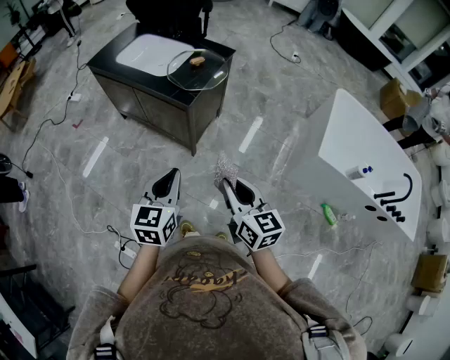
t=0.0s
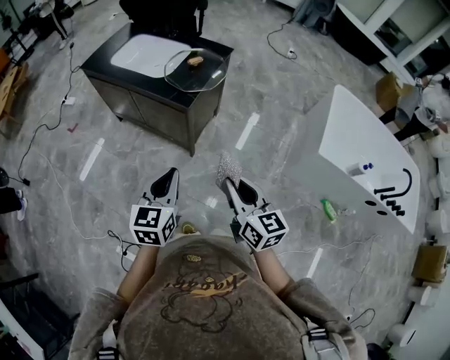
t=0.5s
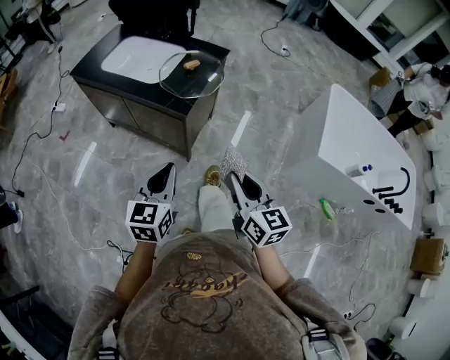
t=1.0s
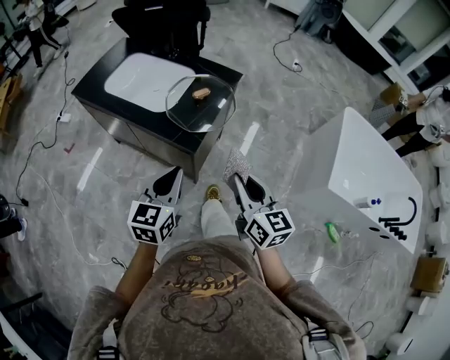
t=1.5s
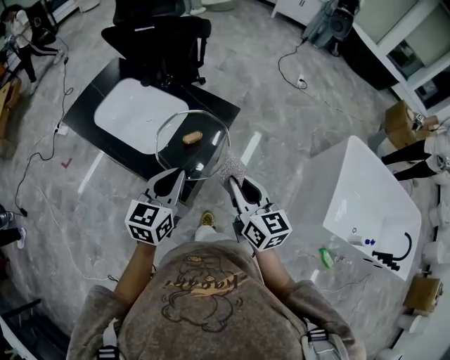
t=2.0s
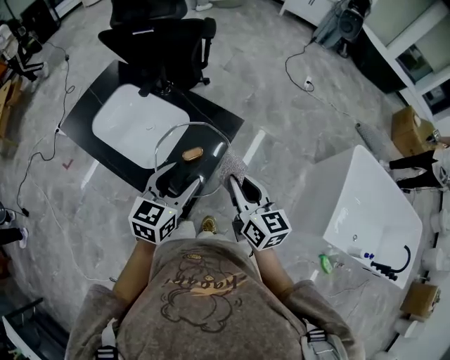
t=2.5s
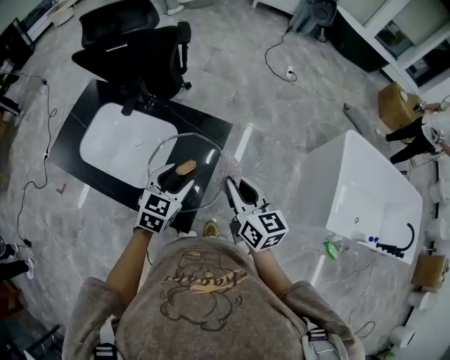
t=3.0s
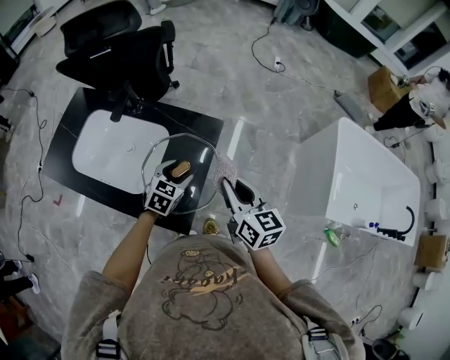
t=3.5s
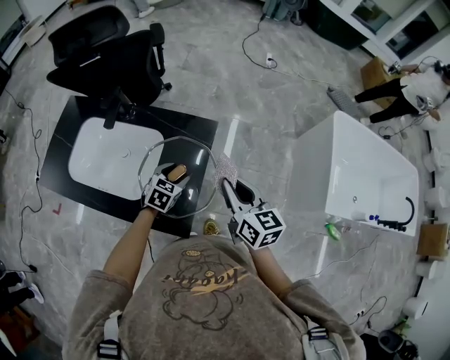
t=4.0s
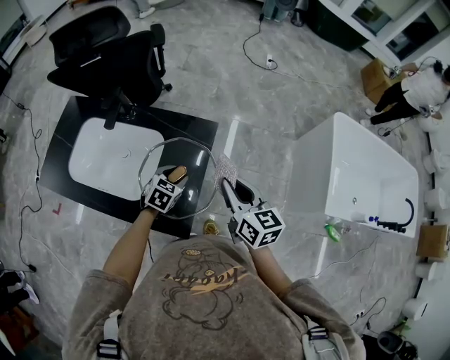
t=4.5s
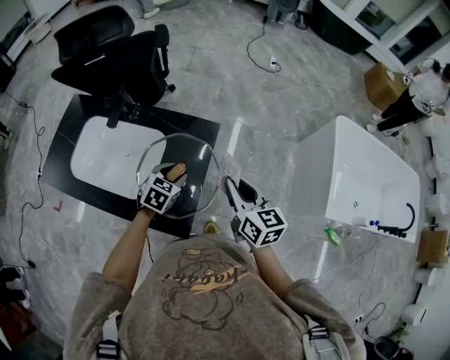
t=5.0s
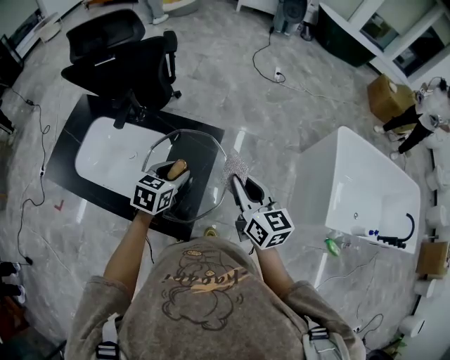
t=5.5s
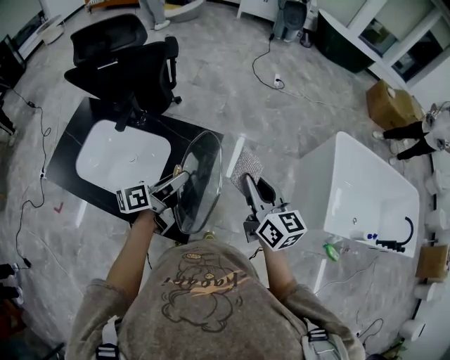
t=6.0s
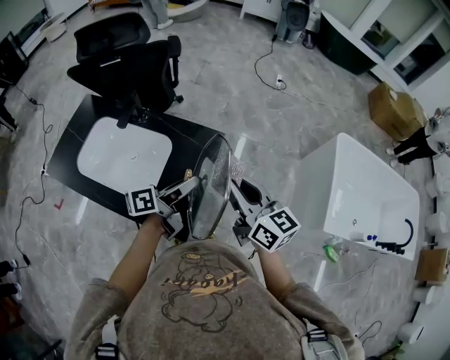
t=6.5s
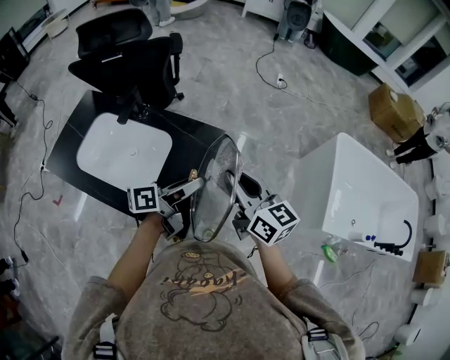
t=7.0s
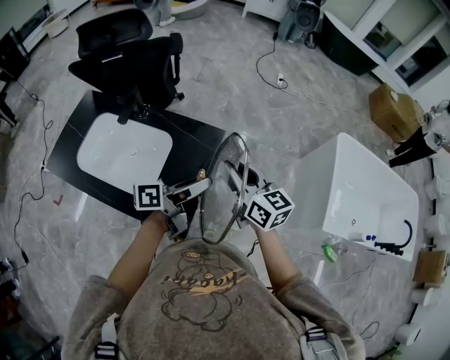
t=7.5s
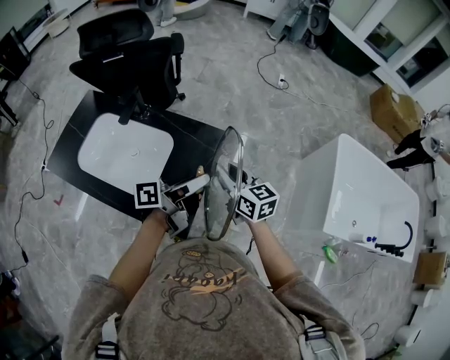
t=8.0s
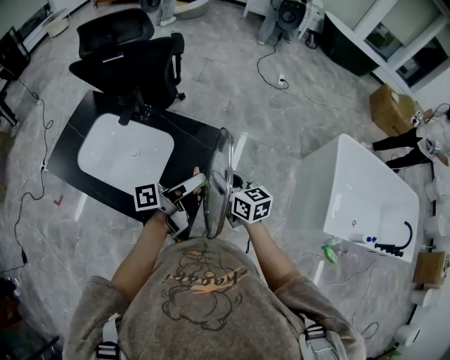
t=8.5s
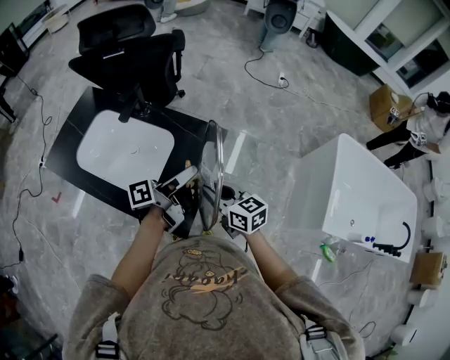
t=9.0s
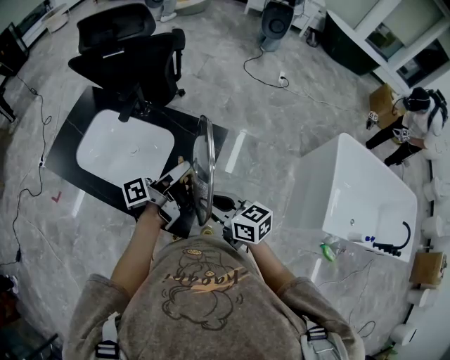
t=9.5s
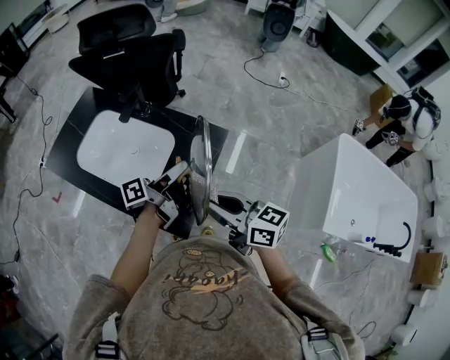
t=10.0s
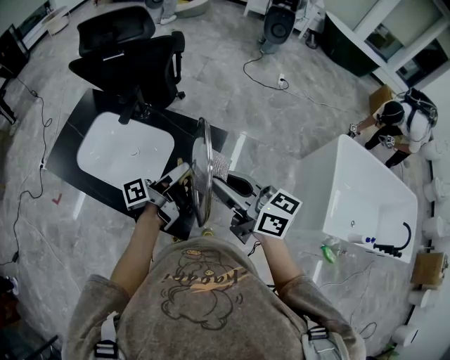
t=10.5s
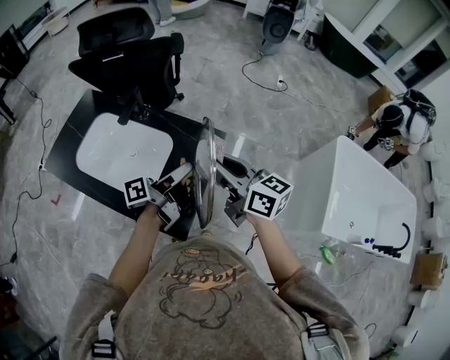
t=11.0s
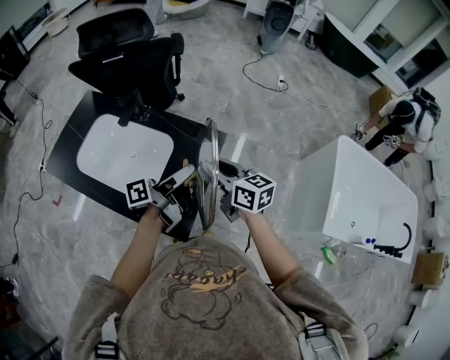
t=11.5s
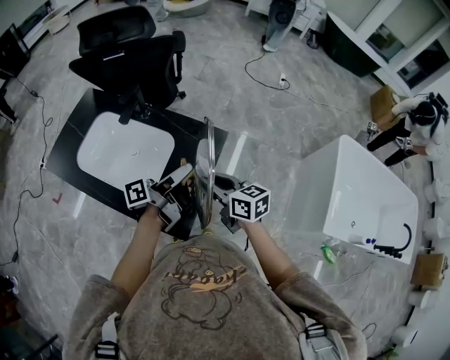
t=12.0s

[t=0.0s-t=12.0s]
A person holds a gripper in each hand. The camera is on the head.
t=0.0s to t=2.0s: The pair of grippers is taken forward, approximately 40 cm.
t=2.0s to t=4.0s: The left gripper moves downward and forward, some 25 cm, angles its fingers downward, by approximately 30 degrees, and opens up; the right gripper goes roughly 10 cm forward.
t=4.0s to t=6.0s: The left gripper heads upward, covering approximately 15 cm, and angles its fingers upward, by approximately 40 degrees. Meanwhile the right gripper heads upward, covering about 5 cm.
t=6.0s to t=8.0s: The right gripper is displaced to the left and downward by approximately 10 cm. Meanwhile the left gripper moves to the right, about 5 cm, and changes its angle by approximately 20 degrees.
t=8.0s to t=10.0s: The left gripper heads to the left, covering about 5 cm, while the right gripper goes some 15 cm backward, upward and to the left, and swivels roughly 30 degrees.
t=10.0s to t=12.0s: The right gripper shifts approximately 10 cm downward and forward.

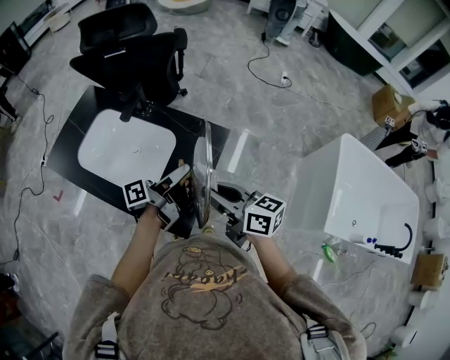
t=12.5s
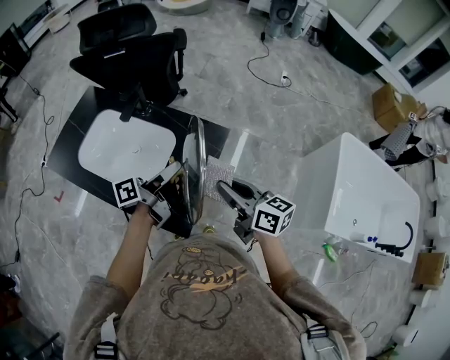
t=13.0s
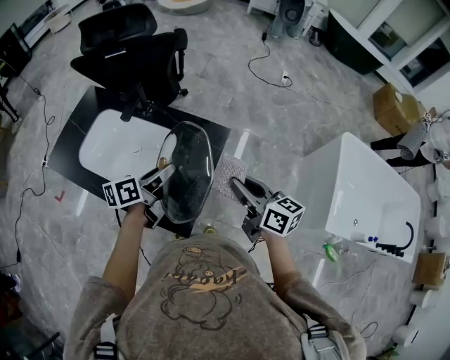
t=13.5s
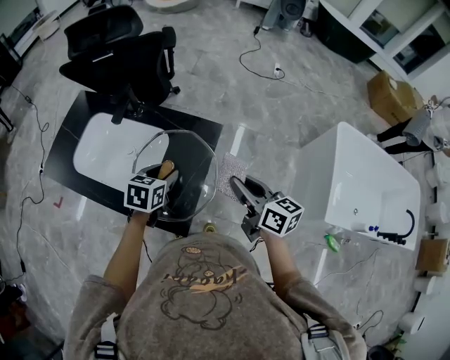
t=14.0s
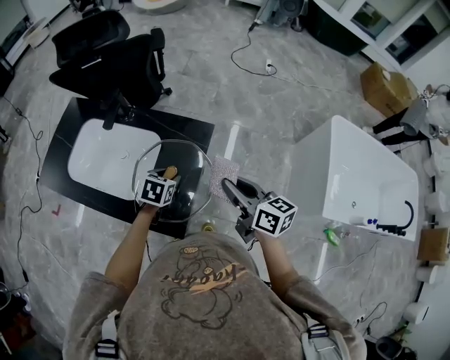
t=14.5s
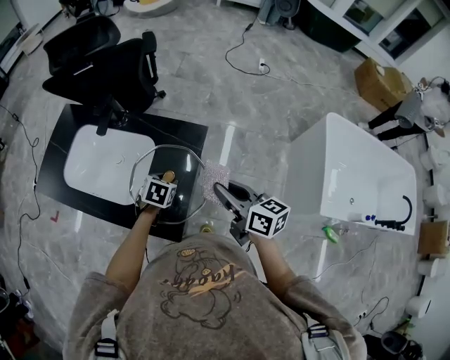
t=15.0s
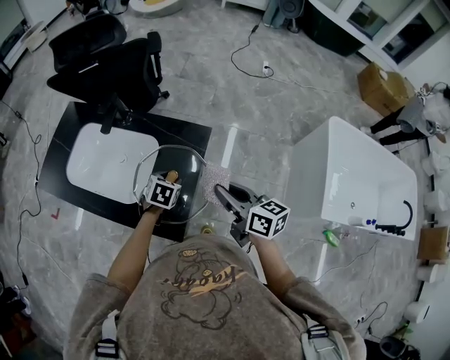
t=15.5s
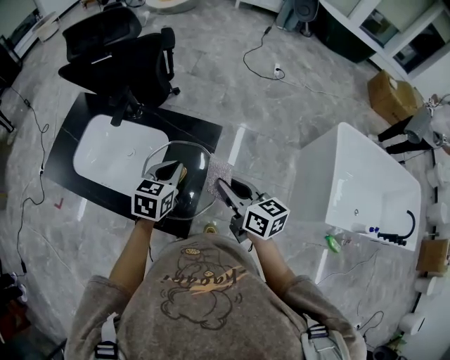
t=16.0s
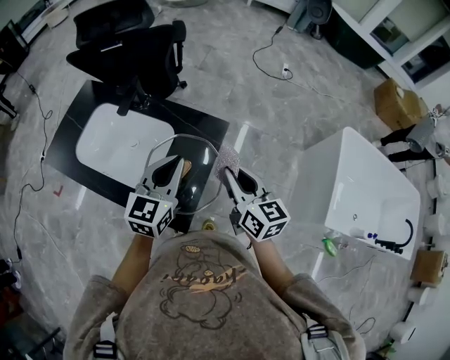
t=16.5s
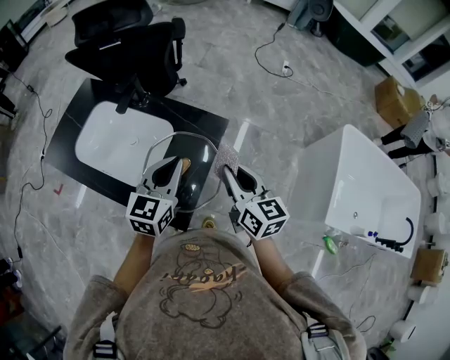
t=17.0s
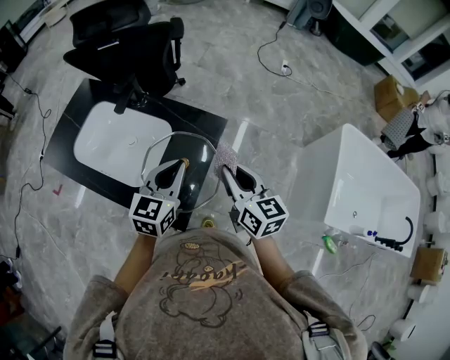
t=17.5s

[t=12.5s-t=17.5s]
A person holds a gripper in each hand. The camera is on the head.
t=12.5s to t=15.0s: The left gripper goes some 15 cm downward, and tips its fingers downward by approximately 70 degrees. Meanwhile the right gripper moves to the right, some 10 cm.
t=15.0s to t=17.5s: The left gripper travels upward by about 20 cm, points its fingers approximately 40 degrees further upward, and closes up.

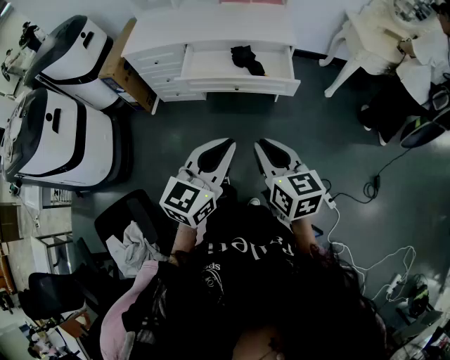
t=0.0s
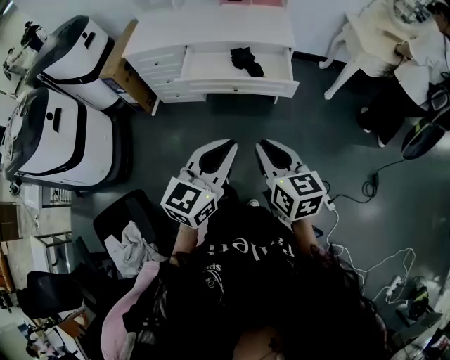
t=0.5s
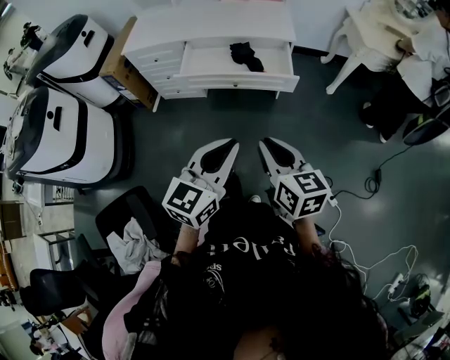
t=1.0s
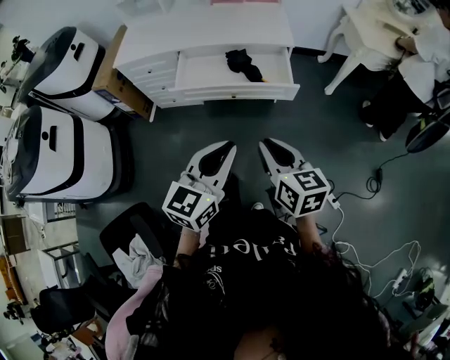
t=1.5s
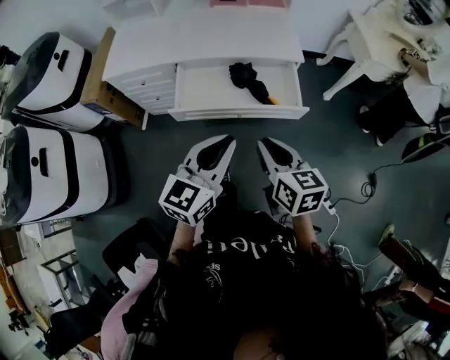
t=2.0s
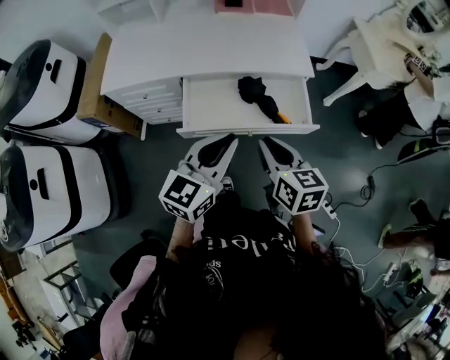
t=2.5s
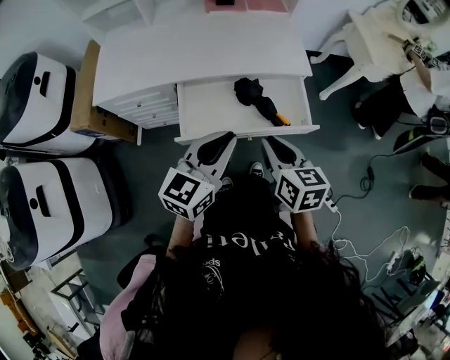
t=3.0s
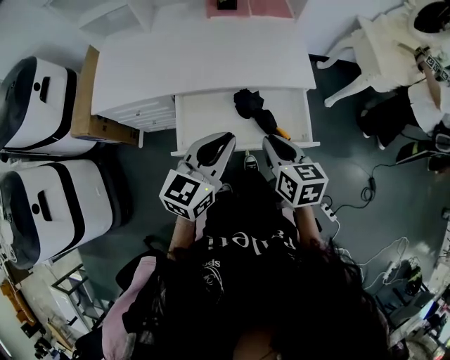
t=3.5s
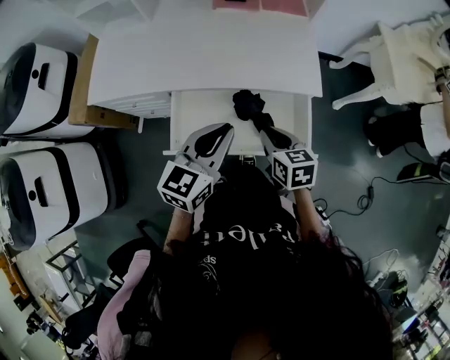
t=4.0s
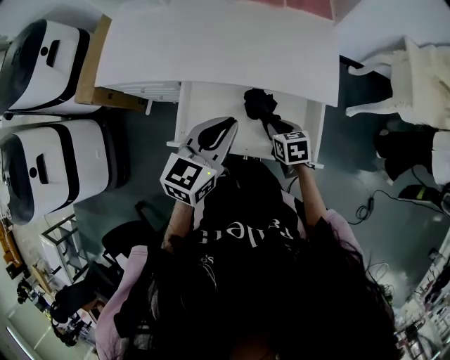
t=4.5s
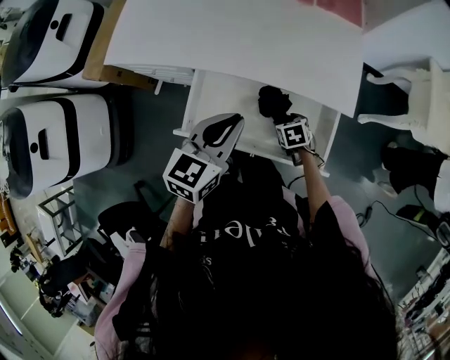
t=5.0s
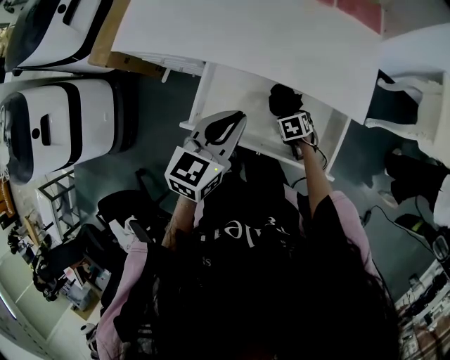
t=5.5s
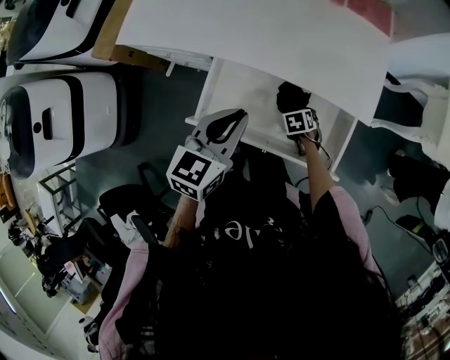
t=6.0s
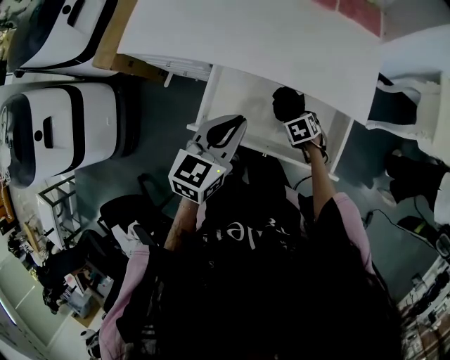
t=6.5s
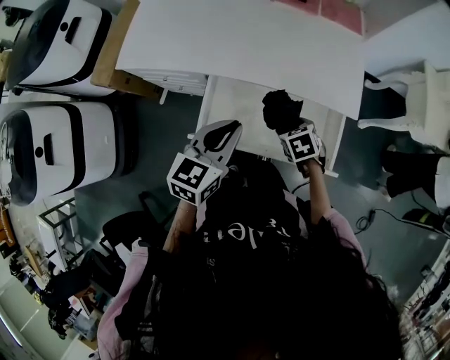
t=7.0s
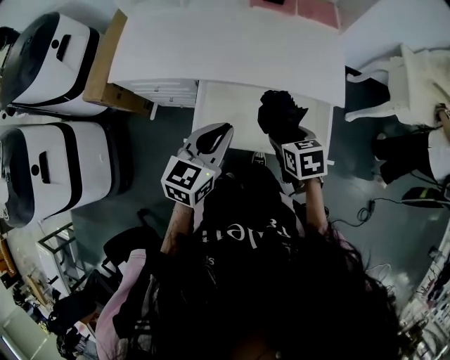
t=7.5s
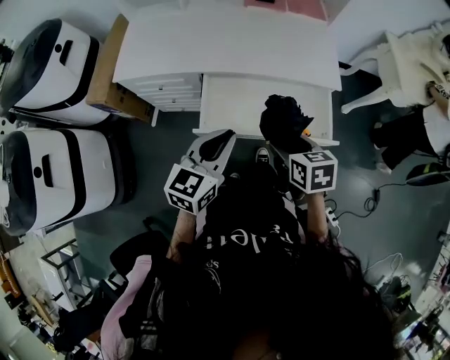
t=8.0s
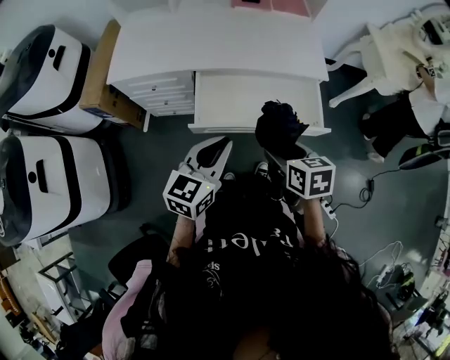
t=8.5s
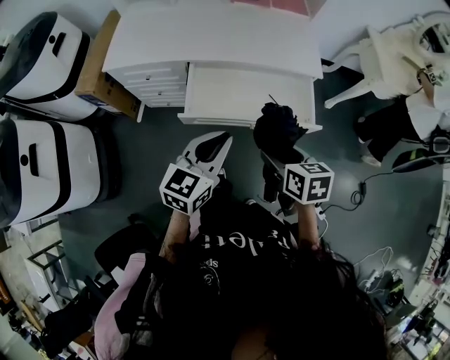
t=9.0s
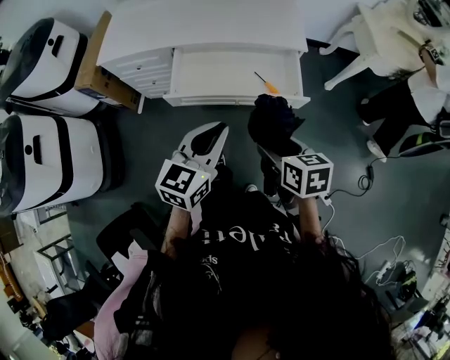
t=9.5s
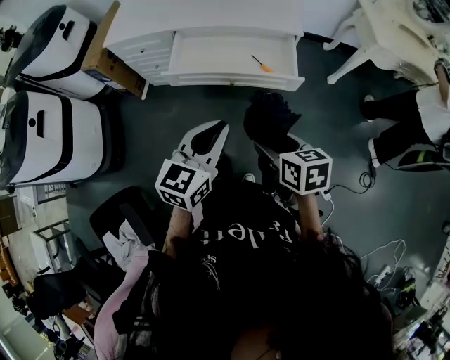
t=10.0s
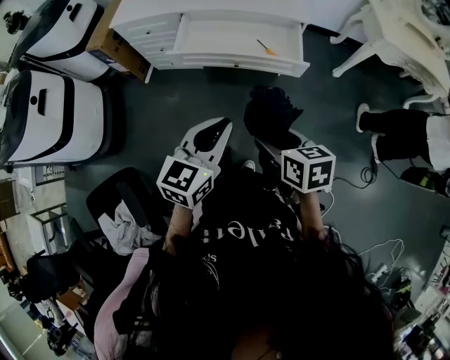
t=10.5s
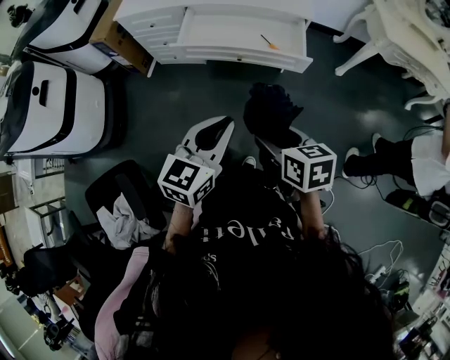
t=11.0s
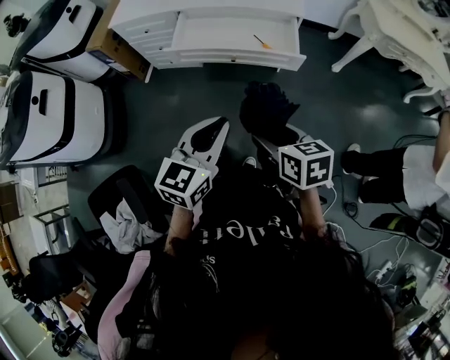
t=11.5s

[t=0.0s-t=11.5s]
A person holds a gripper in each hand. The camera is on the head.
t=0.0s to t=2.0s: Both grippers move forward, about 20 cm.
t=2.0s to t=4.0s: The left gripper heads forward, covering roughly 30 cm. The right gripper shifts about 30 cm forward and downward.
t=4.0s to t=6.0s: The left gripper shifts by approximately 10 cm; the right gripper travels downward by some 25 cm, points its fingers approximately 40 degrees further downward, and opens up.
t=6.0s to t=7.5s: The left gripper ends up roughly 5 cm from where it was; the right gripper travels upward by approximately 25 cm, and changes its angle by some 30 degrees.
t=7.5s to t=9.5s: The right gripper is displaced backward by some 30 cm. The left gripper moves backward and to the right, about 30 cm.
t=9.5s to t=11.5s: The grippers both shift backward by approximately 20 cm.
